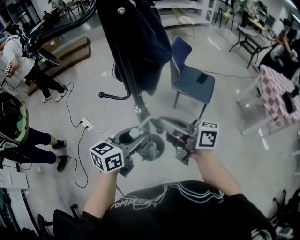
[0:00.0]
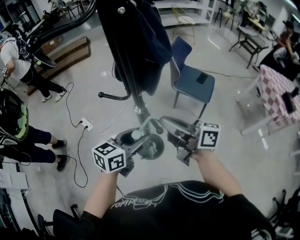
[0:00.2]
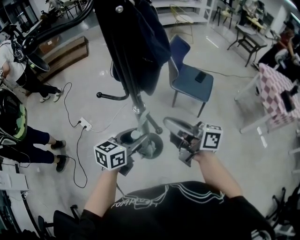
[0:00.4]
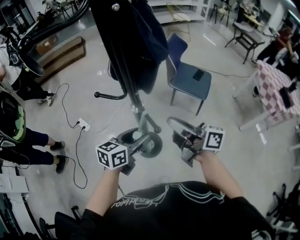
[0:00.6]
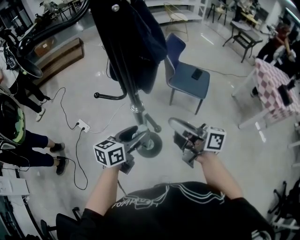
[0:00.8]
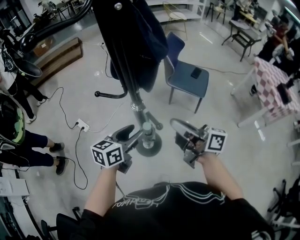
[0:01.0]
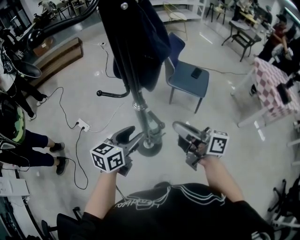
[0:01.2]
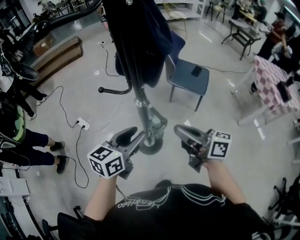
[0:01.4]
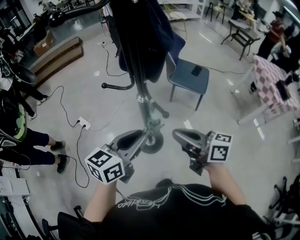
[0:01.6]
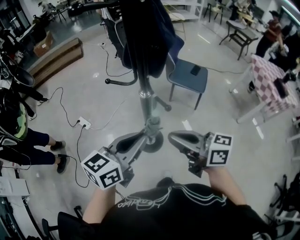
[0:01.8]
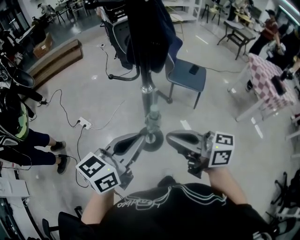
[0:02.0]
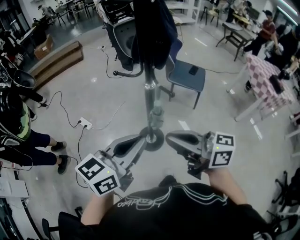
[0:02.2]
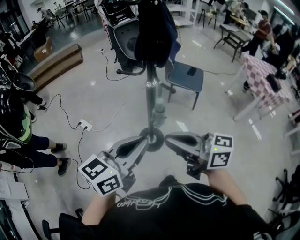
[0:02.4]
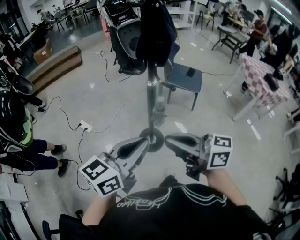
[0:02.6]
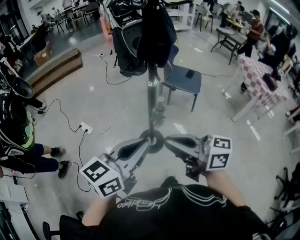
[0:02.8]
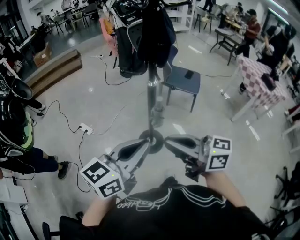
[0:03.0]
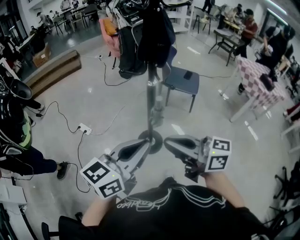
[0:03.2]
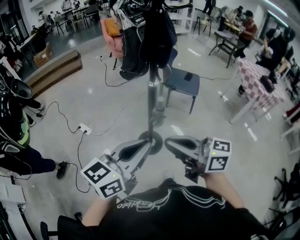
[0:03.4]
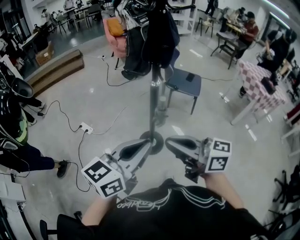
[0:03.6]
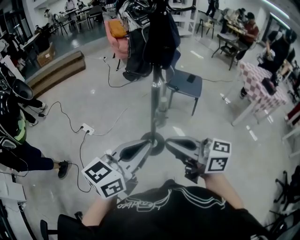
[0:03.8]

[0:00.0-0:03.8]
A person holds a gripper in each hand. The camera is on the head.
0:00.0 to 0:01.2: The right gripper changes place by roughly 5 cm.
0:01.2 to 0:02.6: The right gripper travels backward, to the left and upward by approximately 25 cm, and turns by approximately 20 degrees. Meanwhile the left gripper is displaced backward and upward by some 25 cm, and closes its fingers.
0:02.6 to 0:03.8: The left gripper moves roughly 5 cm.

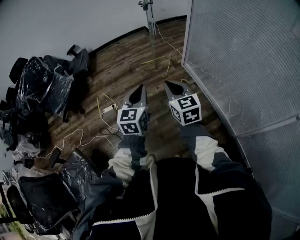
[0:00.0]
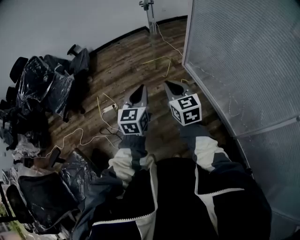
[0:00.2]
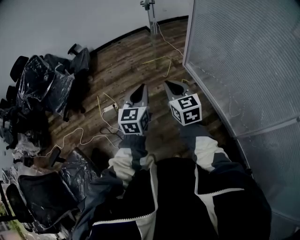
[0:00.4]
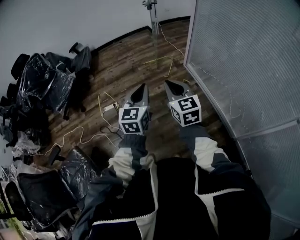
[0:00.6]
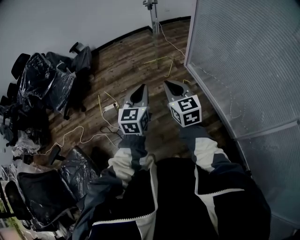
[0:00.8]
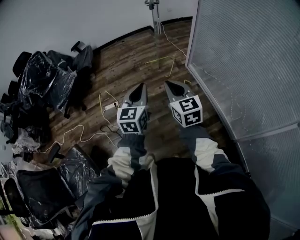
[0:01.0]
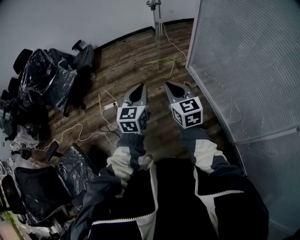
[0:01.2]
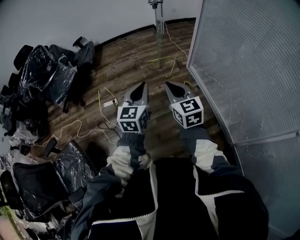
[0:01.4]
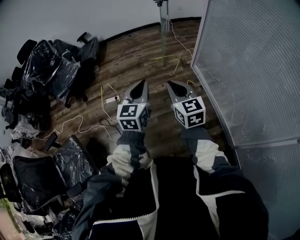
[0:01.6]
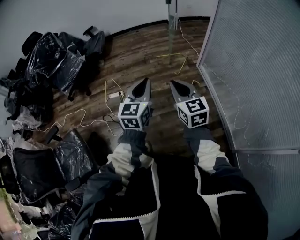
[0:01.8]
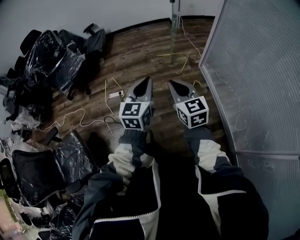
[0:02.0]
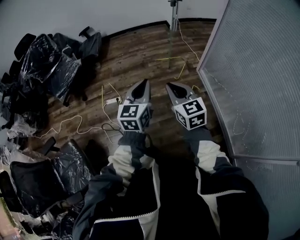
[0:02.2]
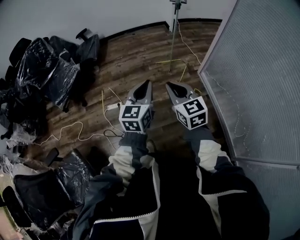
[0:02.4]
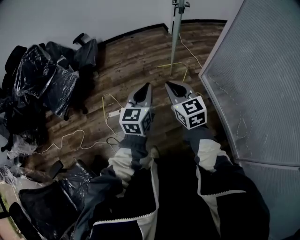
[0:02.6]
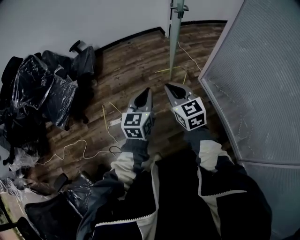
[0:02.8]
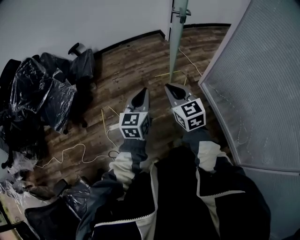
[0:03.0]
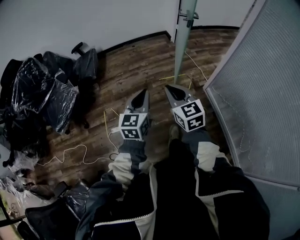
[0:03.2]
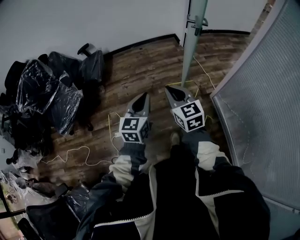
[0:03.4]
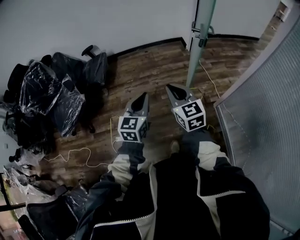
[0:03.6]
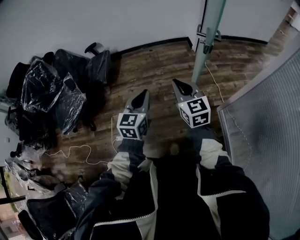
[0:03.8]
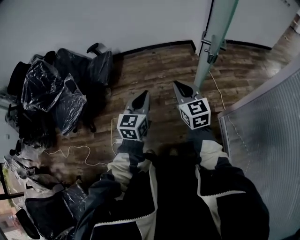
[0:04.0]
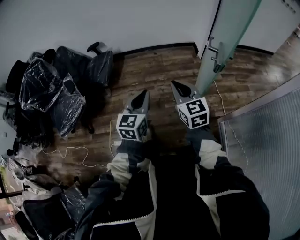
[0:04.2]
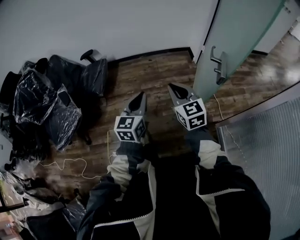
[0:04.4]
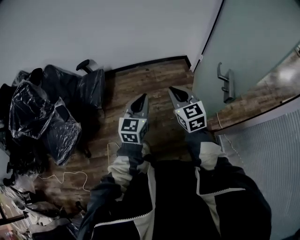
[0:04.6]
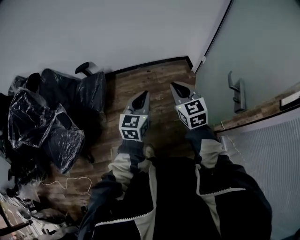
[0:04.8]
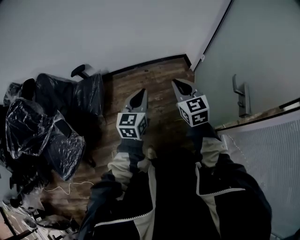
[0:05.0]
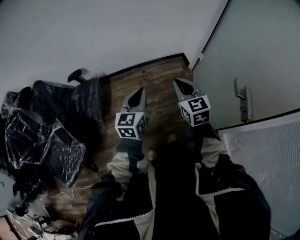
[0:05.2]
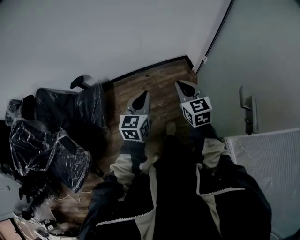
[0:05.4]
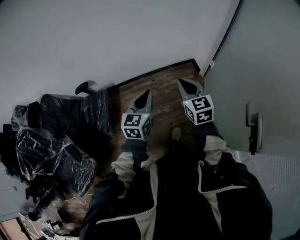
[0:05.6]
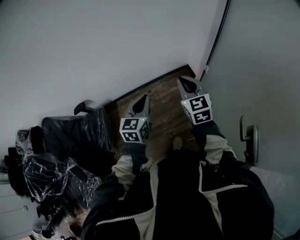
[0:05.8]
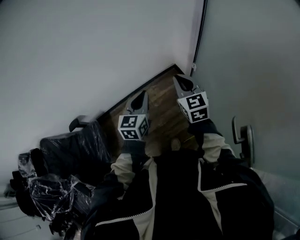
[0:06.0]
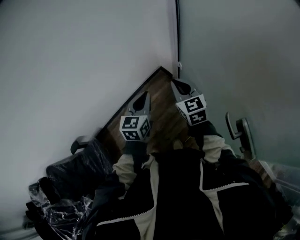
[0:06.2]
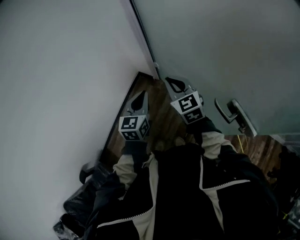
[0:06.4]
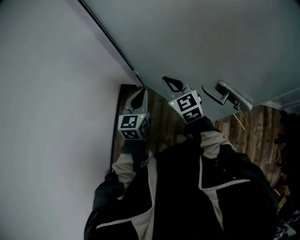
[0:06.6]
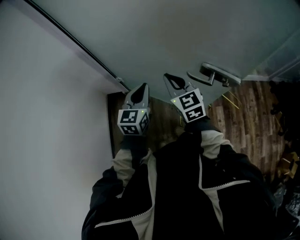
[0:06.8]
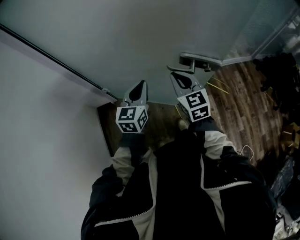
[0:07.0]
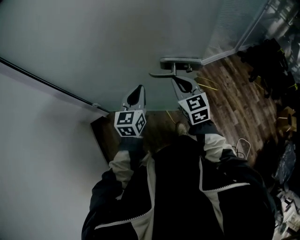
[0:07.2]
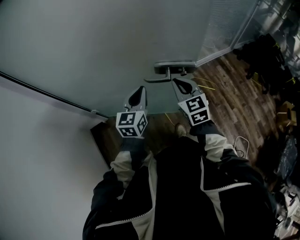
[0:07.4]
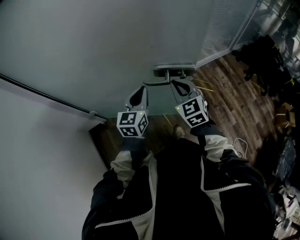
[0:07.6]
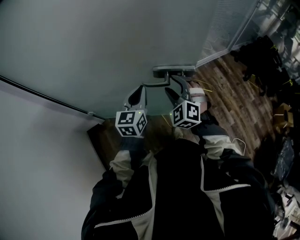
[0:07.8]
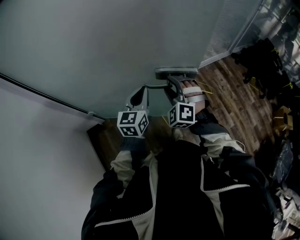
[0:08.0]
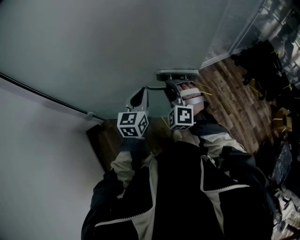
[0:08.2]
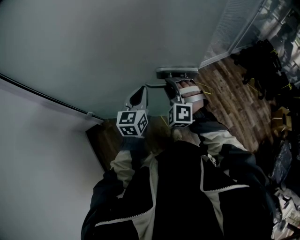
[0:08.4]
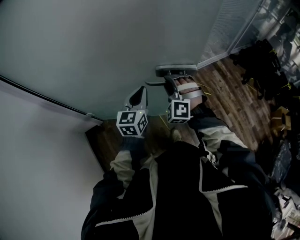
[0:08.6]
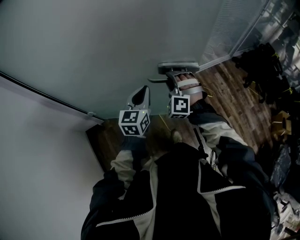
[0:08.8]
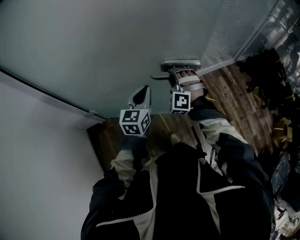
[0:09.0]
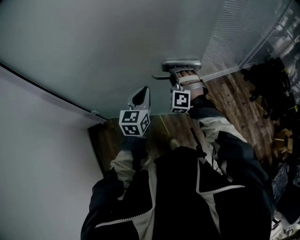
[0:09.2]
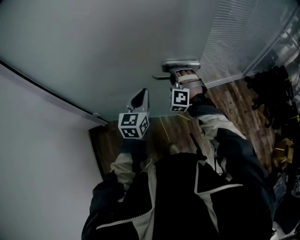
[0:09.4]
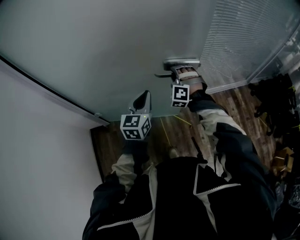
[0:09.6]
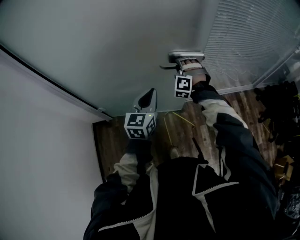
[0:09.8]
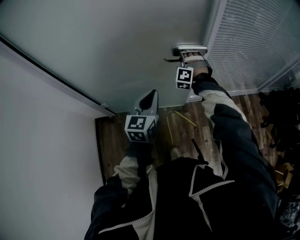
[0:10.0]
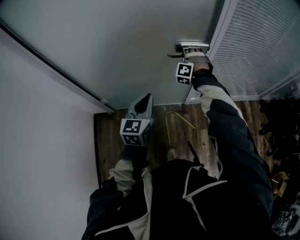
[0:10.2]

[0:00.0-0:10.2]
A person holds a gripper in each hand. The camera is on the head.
0:00.0 to 0:01.4: There are only small adjustments of the grippers.
0:01.4 to 0:03.0: Both grippers travel together forward, about 35 cm.
0:03.0 to 0:04.4: The two grippers go about 40 cm forward.
0:04.4 to 0:05.8: The pair of grippers is taken forward, some 50 cm.
0:05.8 to 0:07.2: The right gripper moves some 35 cm, and turns by some 90 degrees. The left gripper ends up about 35 cm from where it was, and changes its angle by roughly 90 degrees.
0:07.2 to 0:08.8: The right gripper travels forward and downward by about 10 cm, twists roughly 70 degrees counterclockwise, seen from behind, and opens; the left gripper is displaced forward by approximately 5 cm.
0:08.8 to 0:10.2: The right gripper heads forward, covering approximately 30 cm; the left gripper goes approximately 5 cm forward, and changes its angle by roughly 20 degrees.

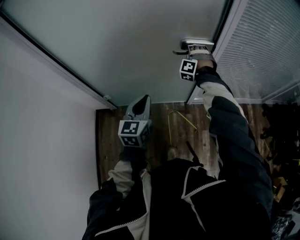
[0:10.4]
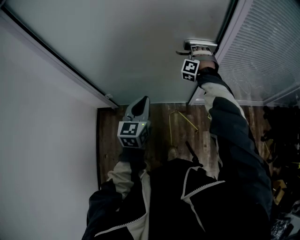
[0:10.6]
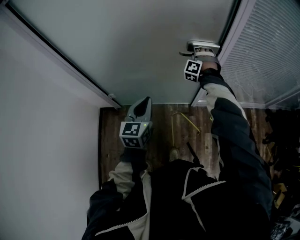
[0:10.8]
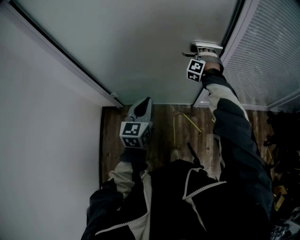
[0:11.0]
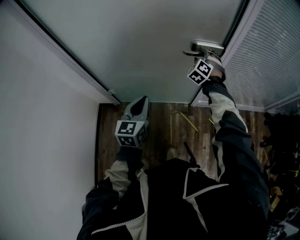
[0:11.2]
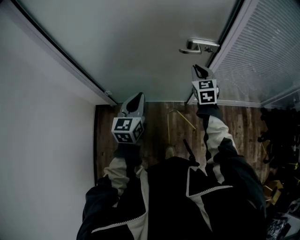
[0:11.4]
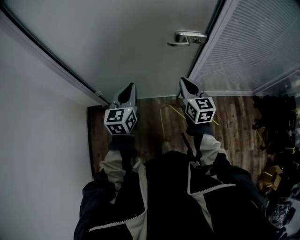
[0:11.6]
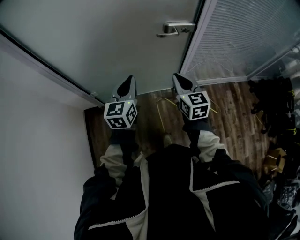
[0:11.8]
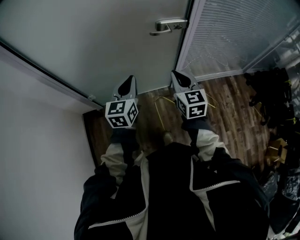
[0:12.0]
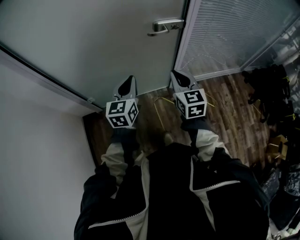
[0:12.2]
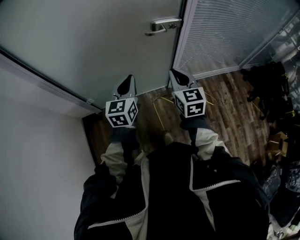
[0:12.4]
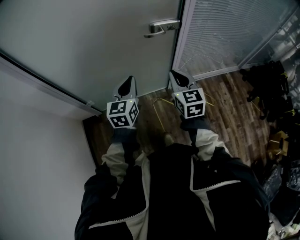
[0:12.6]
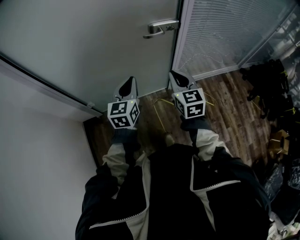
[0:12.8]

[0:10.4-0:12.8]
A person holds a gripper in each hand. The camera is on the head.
0:10.4 to 0:11.6: The left gripper changes place by approximately 5 cm; the right gripper moves backward, roughly 25 cm, twists some 100 degrees clockwise, seen from behind, and closes up.
0:11.6 to 0:12.8: The left gripper moves to the right, some 5 cm, while the right gripper is displaced backward by some 5 cm.

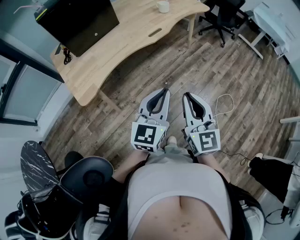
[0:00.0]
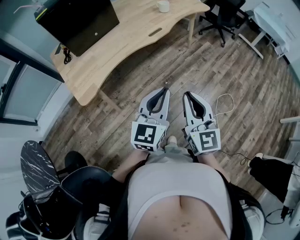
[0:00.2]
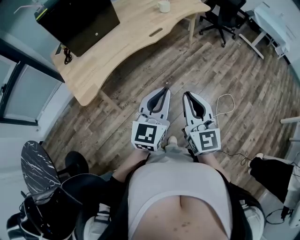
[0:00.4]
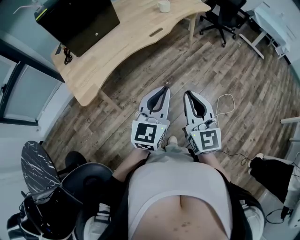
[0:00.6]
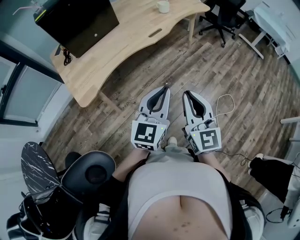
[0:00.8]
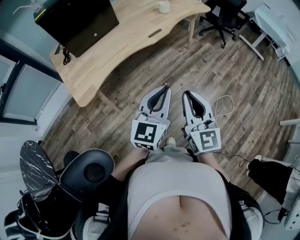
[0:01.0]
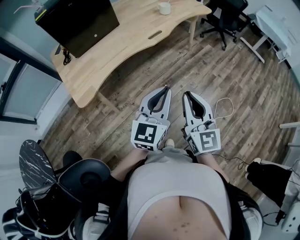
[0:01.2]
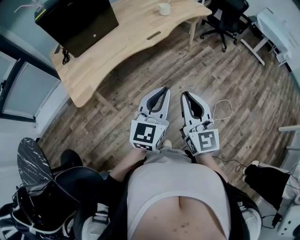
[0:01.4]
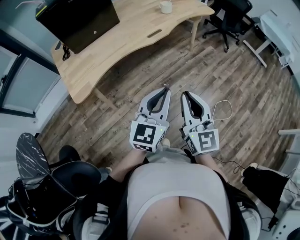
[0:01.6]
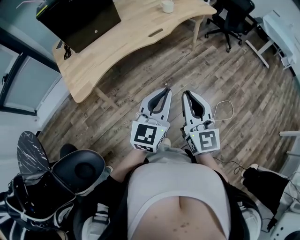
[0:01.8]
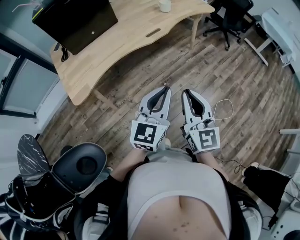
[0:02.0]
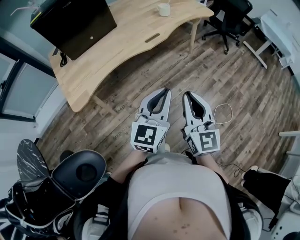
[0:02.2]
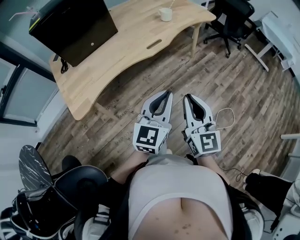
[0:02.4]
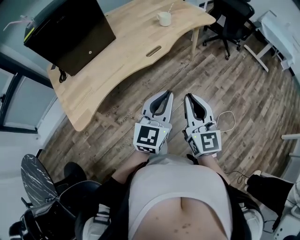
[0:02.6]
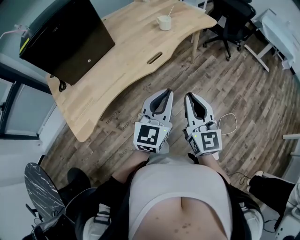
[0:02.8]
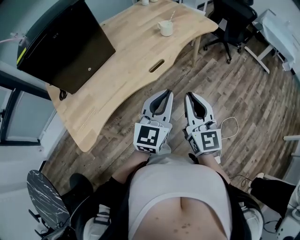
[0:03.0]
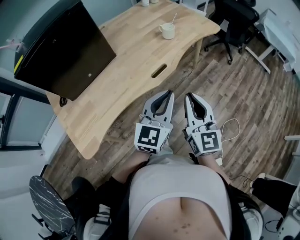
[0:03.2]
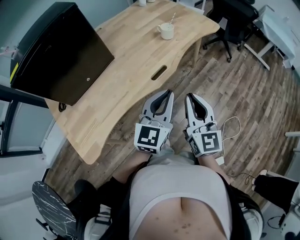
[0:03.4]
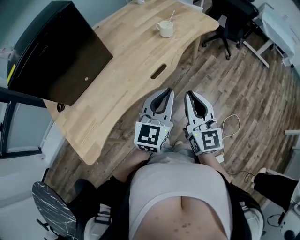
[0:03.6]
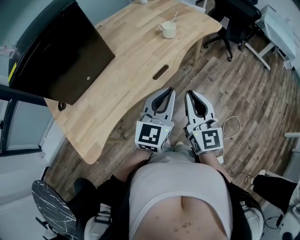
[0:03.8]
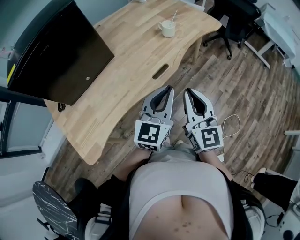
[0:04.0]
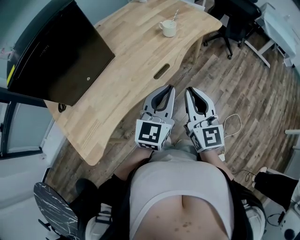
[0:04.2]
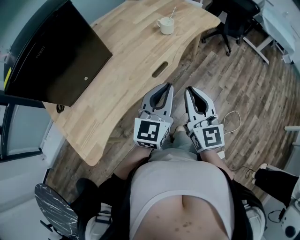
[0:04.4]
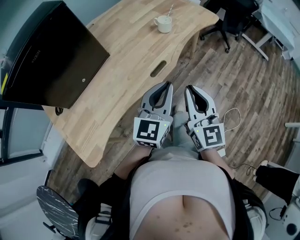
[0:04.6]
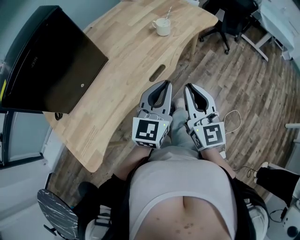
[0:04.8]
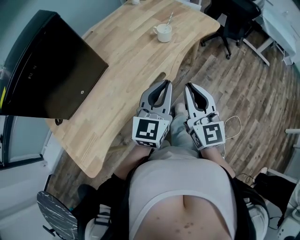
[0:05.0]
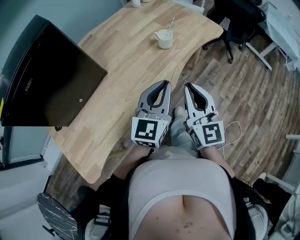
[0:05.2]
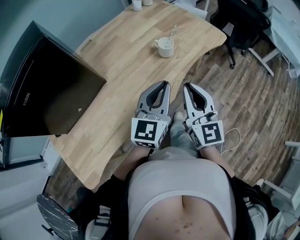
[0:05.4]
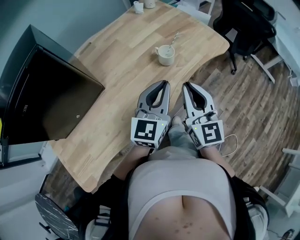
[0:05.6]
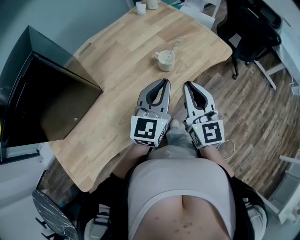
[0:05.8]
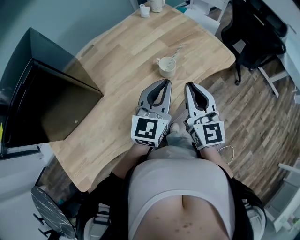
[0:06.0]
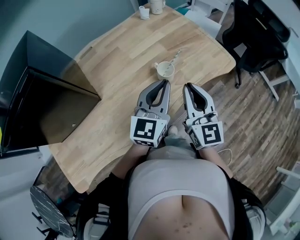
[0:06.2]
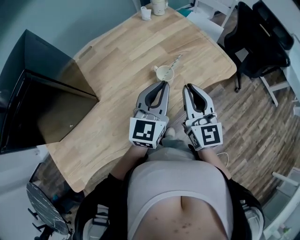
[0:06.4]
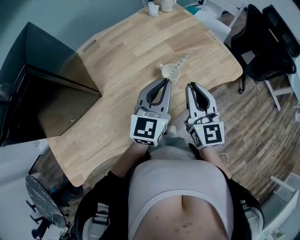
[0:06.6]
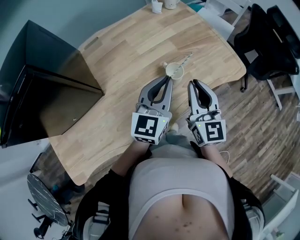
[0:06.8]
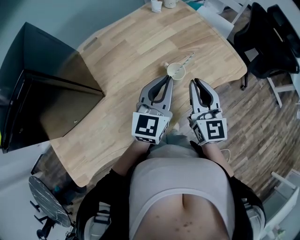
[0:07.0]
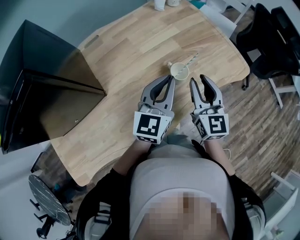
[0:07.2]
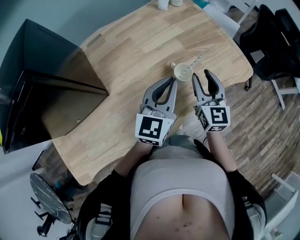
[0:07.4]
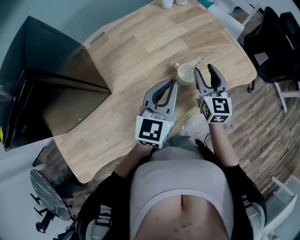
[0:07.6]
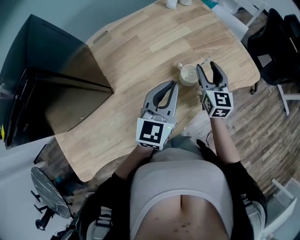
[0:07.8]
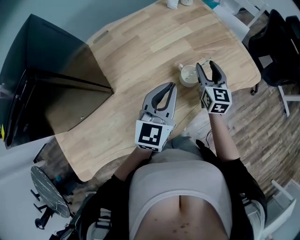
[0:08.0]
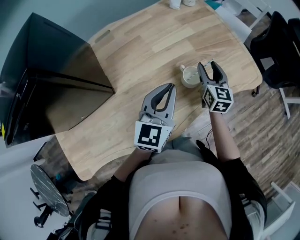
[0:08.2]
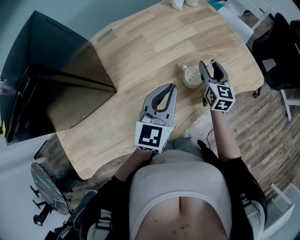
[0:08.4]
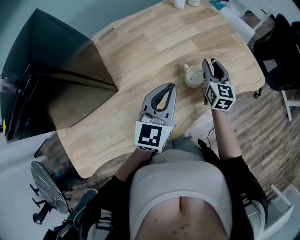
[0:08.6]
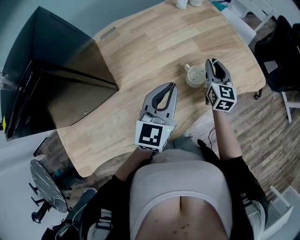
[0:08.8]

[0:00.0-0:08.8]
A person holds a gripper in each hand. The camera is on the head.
0:00.0 to 0:01.4: The left gripper ends up some 5 cm from where it was.
0:01.4 to 0:03.0: The two grippers go approximately 25 cm forward.
0:03.0 to 0:04.4: The two grippers go some 10 cm forward.
0:04.4 to 0:05.8: Both grippers move forward, about 30 cm.
0:05.8 to 0:07.4: The right gripper is displaced forward and downward by about 20 cm, and opens its fingers, while the left gripper heads forward, covering roughly 10 cm.
0:07.4 to 0:08.8: The right gripper travels forward and downward by approximately 10 cm.
